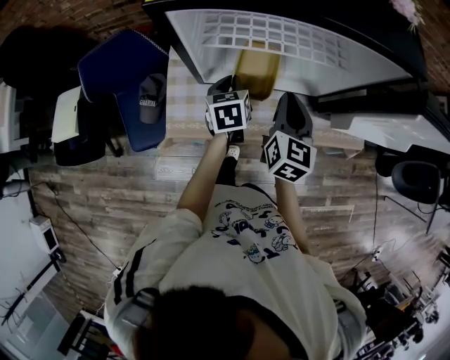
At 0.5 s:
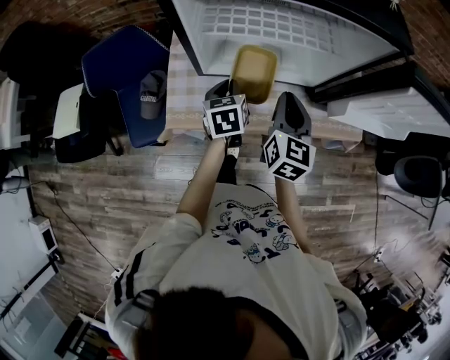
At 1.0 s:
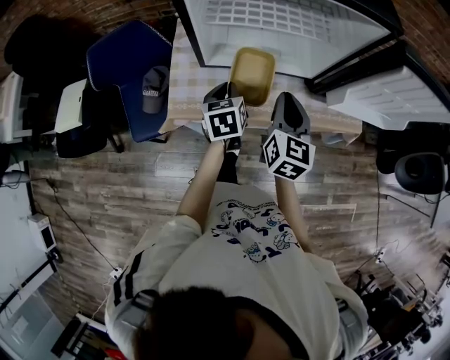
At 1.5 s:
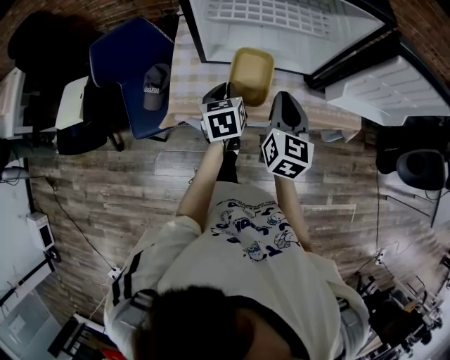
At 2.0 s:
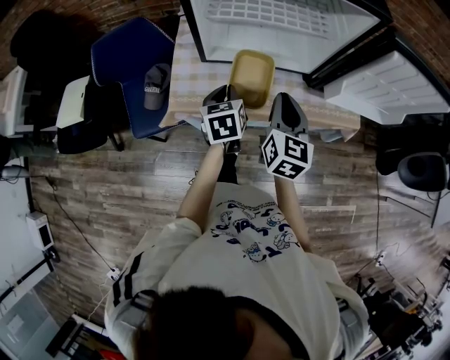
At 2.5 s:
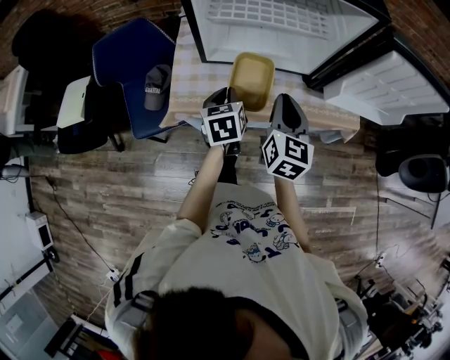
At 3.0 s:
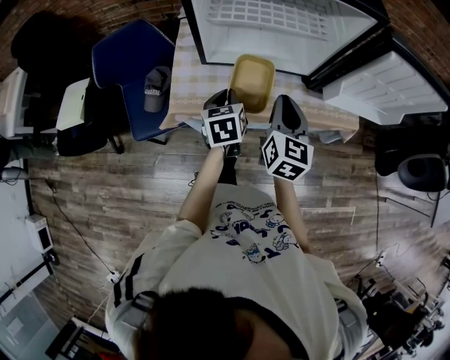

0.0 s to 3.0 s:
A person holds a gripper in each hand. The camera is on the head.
0.0 to 1.5 s: The two grippers go approximately 10 cm backward.
1.5 to 3.0 s: There are only small adjustments of the grippers.

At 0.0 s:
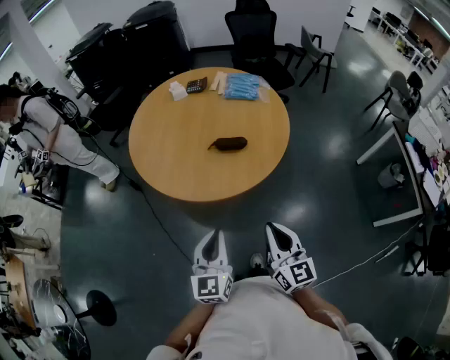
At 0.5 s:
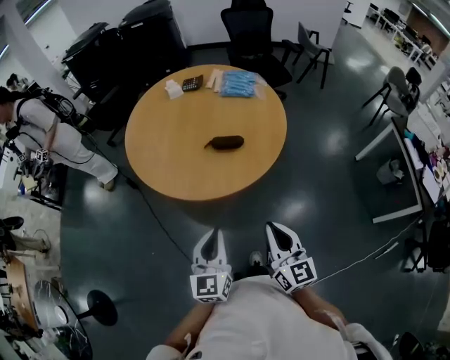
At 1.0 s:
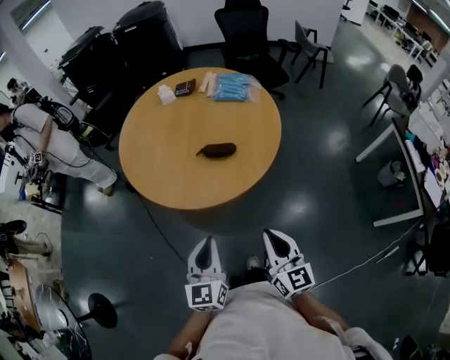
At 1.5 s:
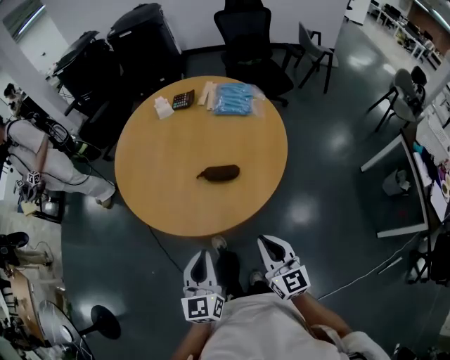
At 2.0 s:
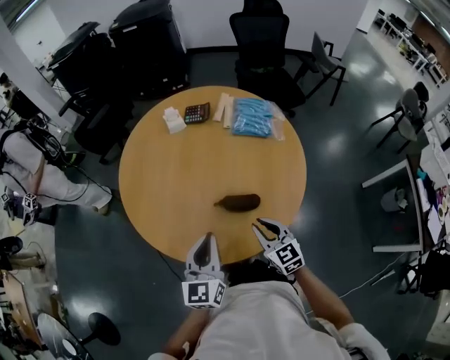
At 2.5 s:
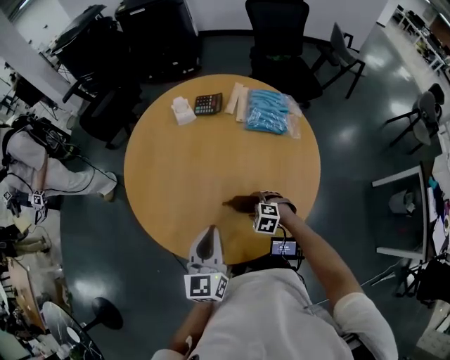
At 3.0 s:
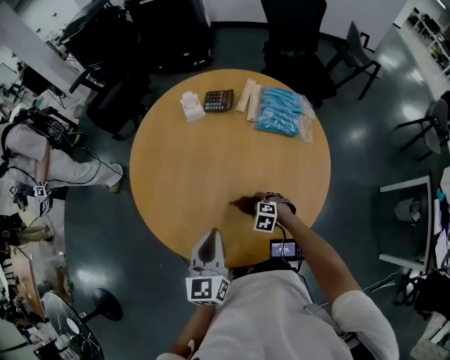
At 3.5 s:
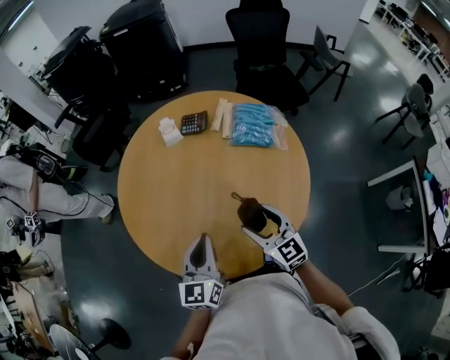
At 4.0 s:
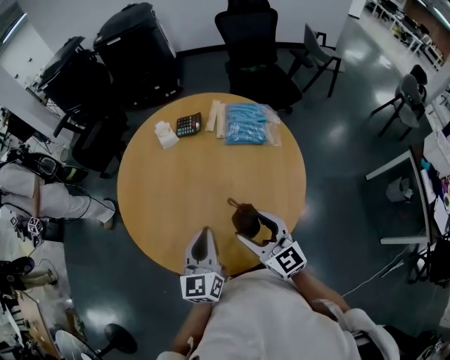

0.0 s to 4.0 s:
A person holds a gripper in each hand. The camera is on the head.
0.0 to 2.0 s: Both grippers move forward, some 30 cm. The right gripper changes its angle by roughly 30 degrees.
2.0 to 4.0 s: Both grippers move forward, roughly 5 cm. The right gripper moves some 20 cm downward and comes back, and opens.

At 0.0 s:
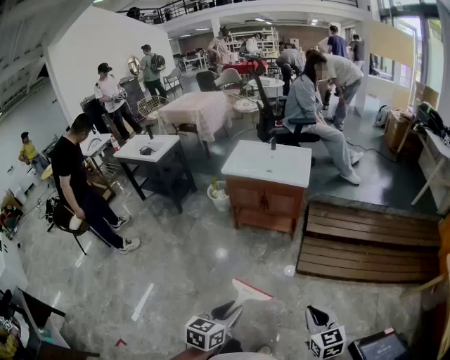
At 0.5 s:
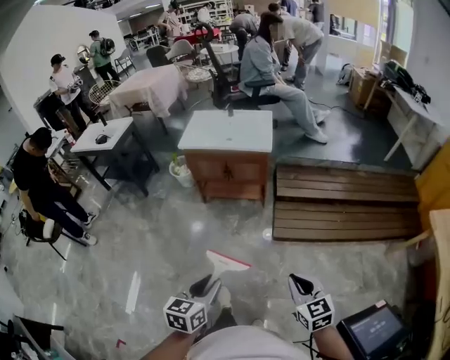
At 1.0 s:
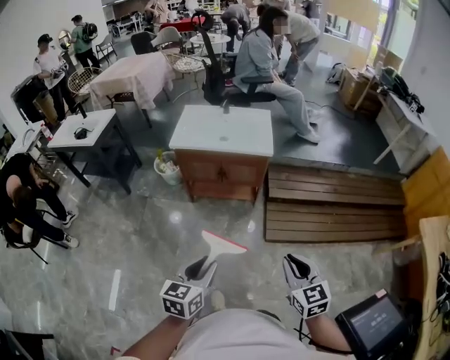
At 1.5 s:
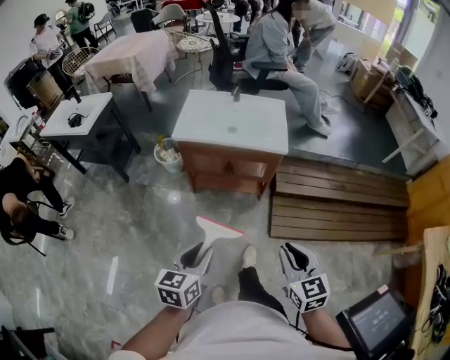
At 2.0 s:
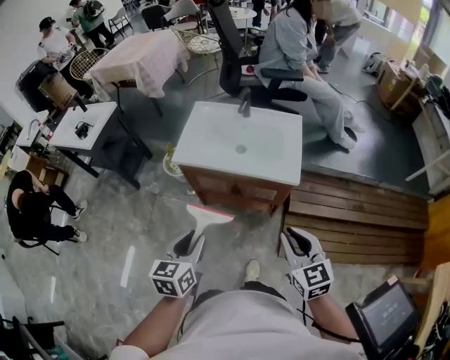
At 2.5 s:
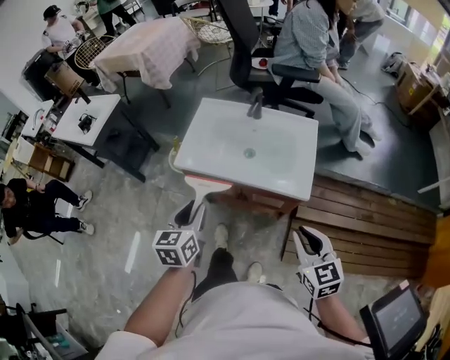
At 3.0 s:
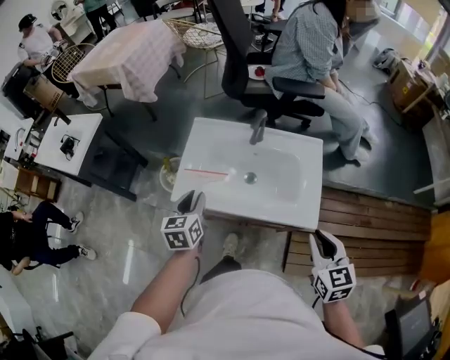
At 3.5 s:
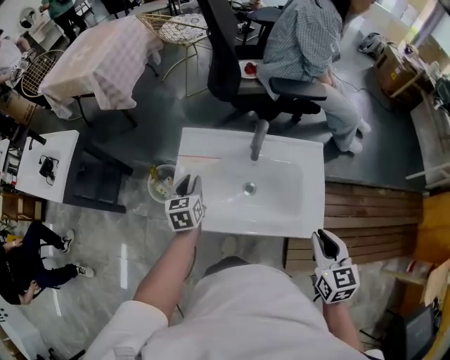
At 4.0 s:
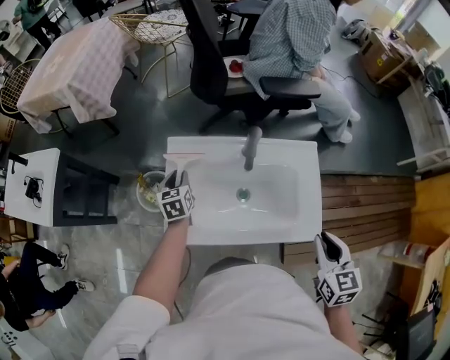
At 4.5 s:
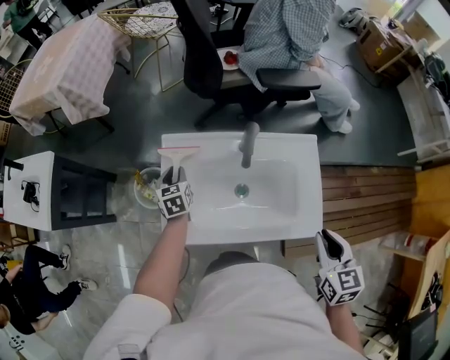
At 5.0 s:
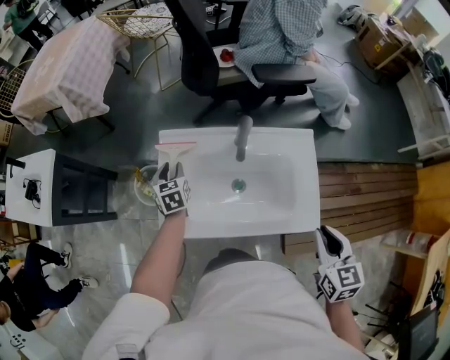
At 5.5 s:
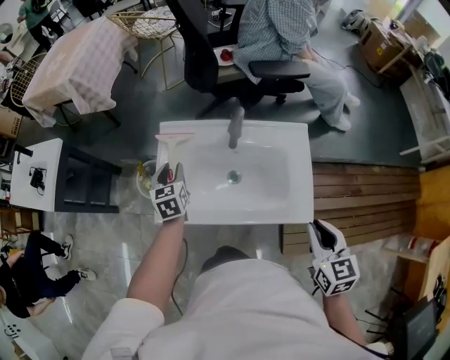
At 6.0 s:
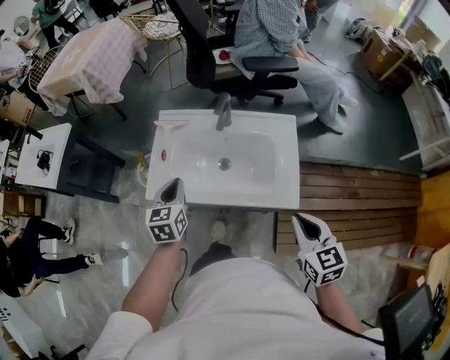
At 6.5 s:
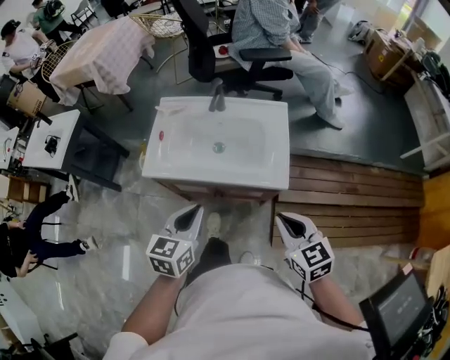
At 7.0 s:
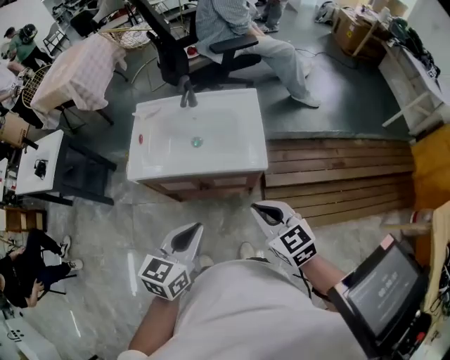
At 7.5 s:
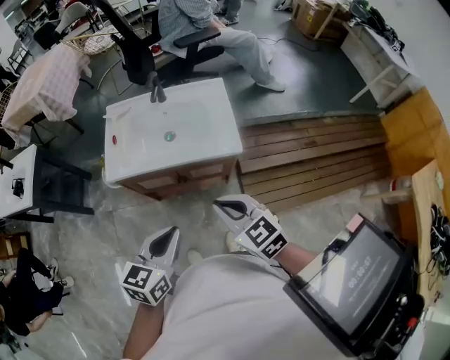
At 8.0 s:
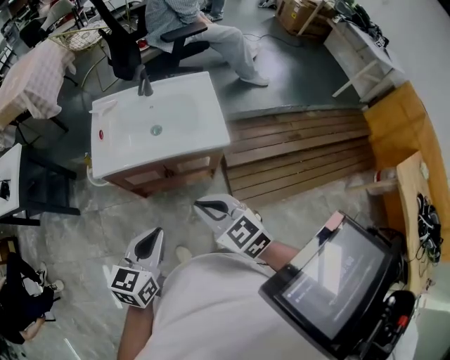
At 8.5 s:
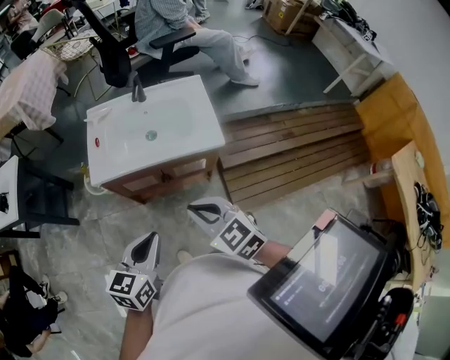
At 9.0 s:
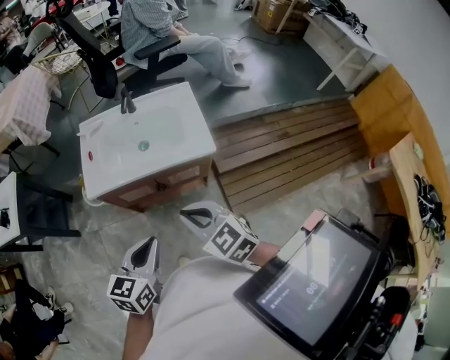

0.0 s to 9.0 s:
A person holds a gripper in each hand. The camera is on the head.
0.0 to 2.0 s: The two grippers travel together, forward, some 60 cm.
2.0 to 4.5 s: The pair of grippers is taken forward, roughly 60 cm. The right gripper swivels approximately 30 degrees.
4.5 to 7.0 s: The left gripper shifts about 70 cm backward, to the right and upward, rotates about 30 degrees, and closes. The right gripper travels backward by approximately 30 cm, and rotates about 30 degrees.
7.0 to 9.0 s: The two grippers go approximately 10 cm to the left and backward.

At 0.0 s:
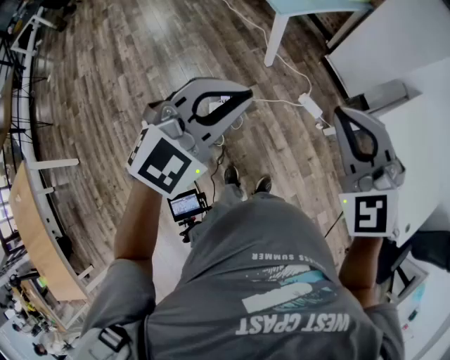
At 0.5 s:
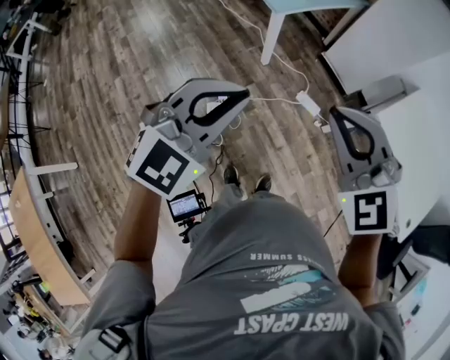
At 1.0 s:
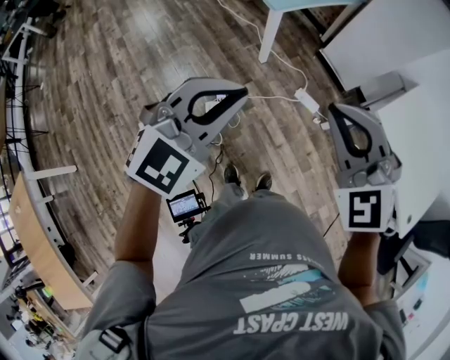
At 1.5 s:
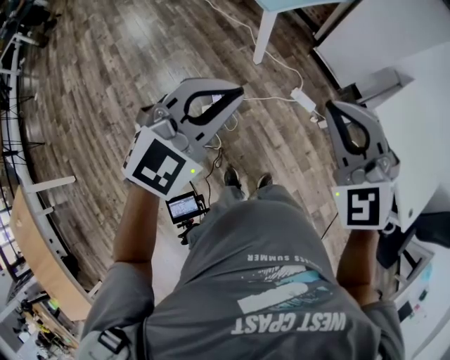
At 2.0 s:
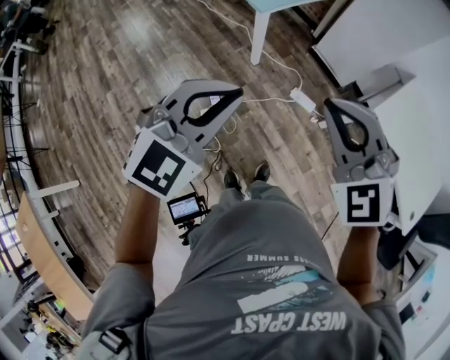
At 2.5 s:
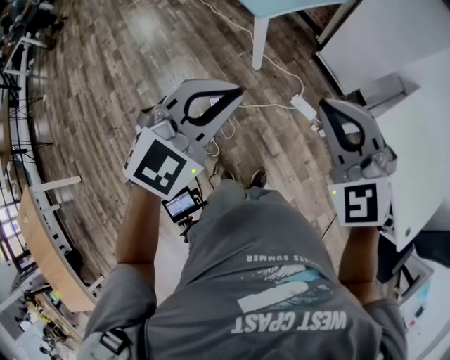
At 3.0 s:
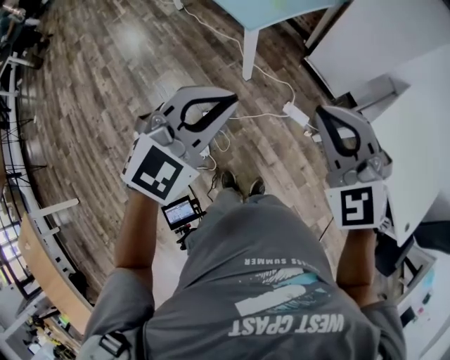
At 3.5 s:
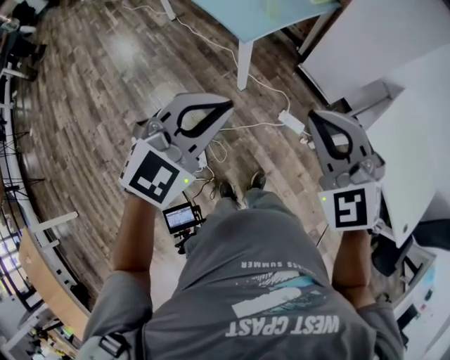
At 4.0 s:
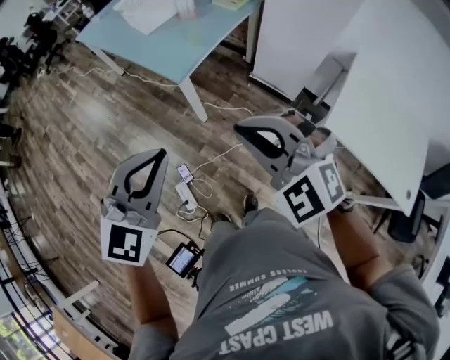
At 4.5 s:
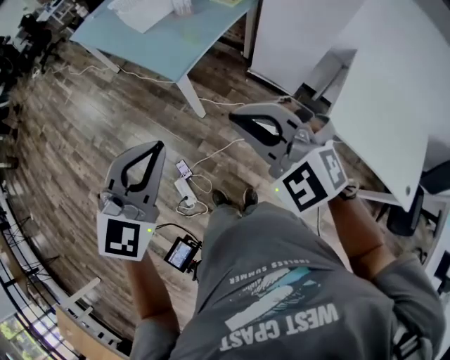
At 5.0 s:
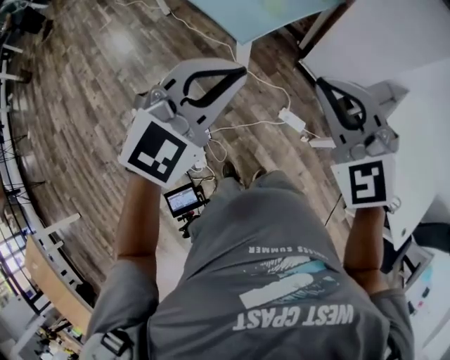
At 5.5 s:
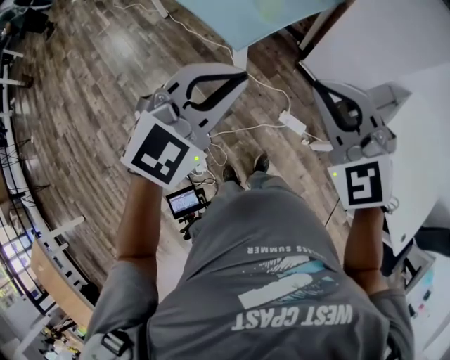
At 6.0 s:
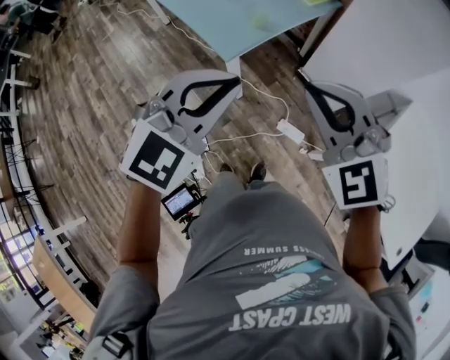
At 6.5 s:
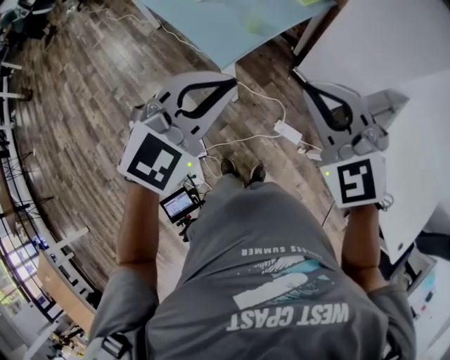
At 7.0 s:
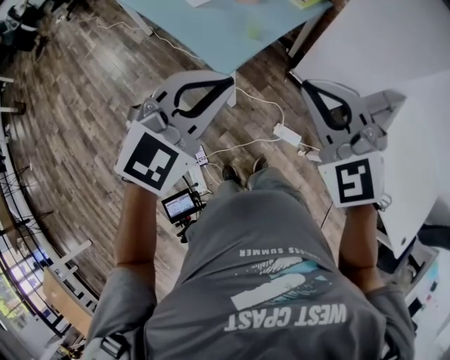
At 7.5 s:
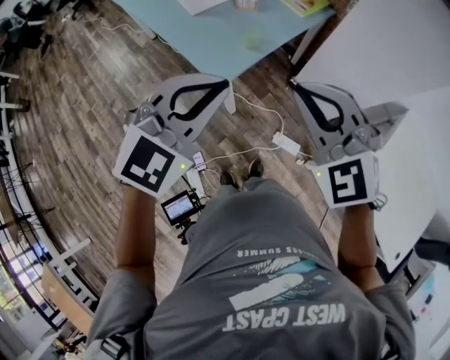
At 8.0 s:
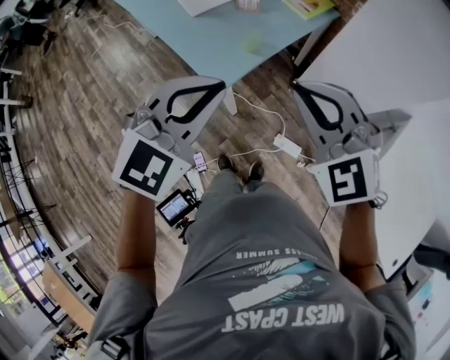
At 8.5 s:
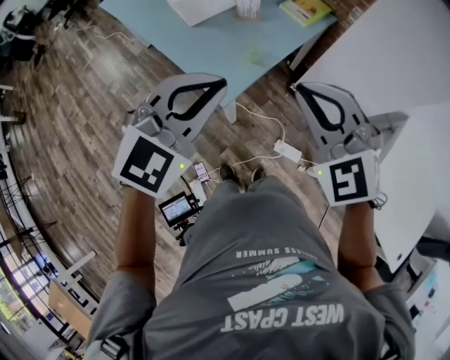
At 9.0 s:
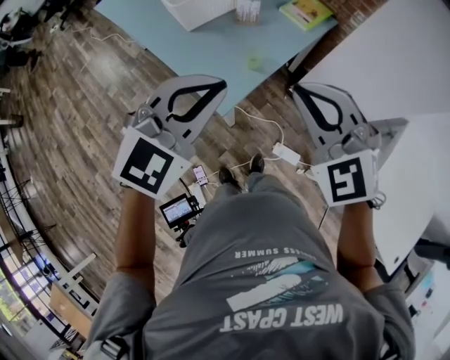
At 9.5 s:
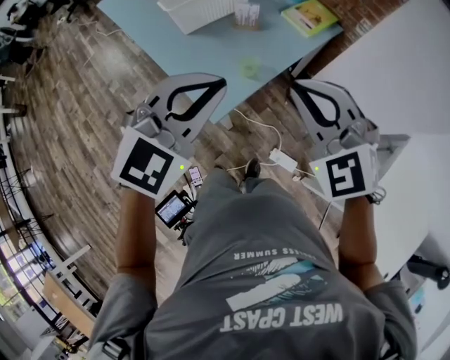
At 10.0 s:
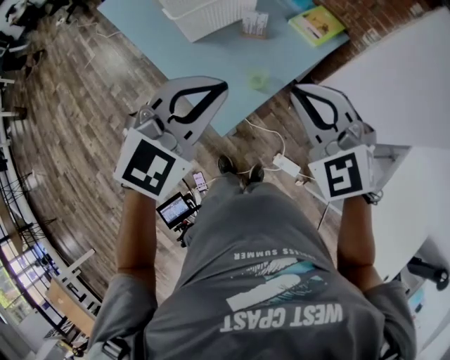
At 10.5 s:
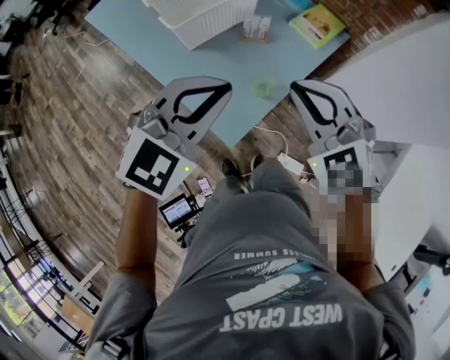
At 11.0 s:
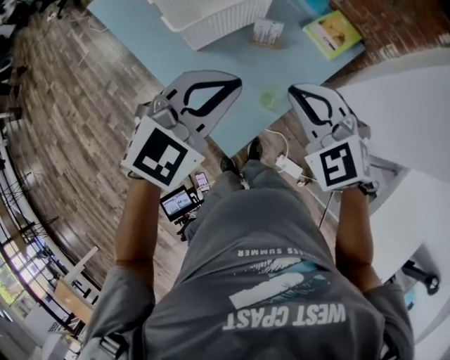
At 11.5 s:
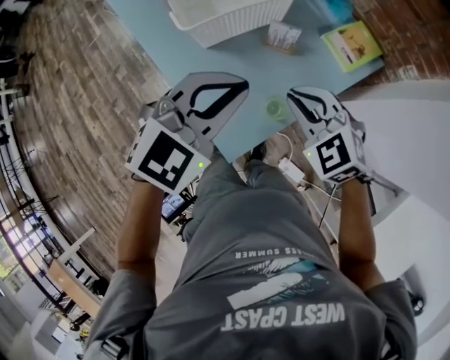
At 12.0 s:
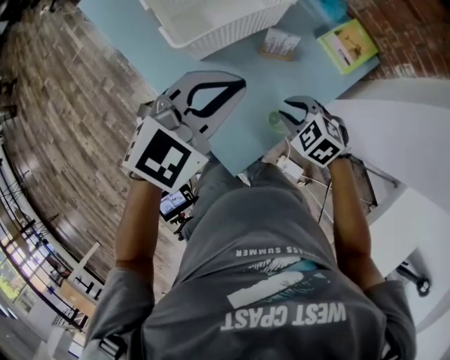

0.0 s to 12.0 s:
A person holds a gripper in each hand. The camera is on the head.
0.0 to 2.0 s: Both grippers move forward, approximately 5 cm.
2.0 to 4.0 s: The grippers both shift forward by approximately 15 cm.
4.0 to 6.0 s: The grippers both shift forward by roughly 15 cm.
6.0 to 8.0 s: Both grippers travel together forward, about 15 cm.
8.0 to 10.0 s: The grippers both shift forward by about 15 cm.
10.0 to 12.0 s: The left gripper is displaced forward by roughly 20 cm, while the right gripper moves downward and forward, some 30 cm, and tips its fingers downward by roughly 30 degrees.
